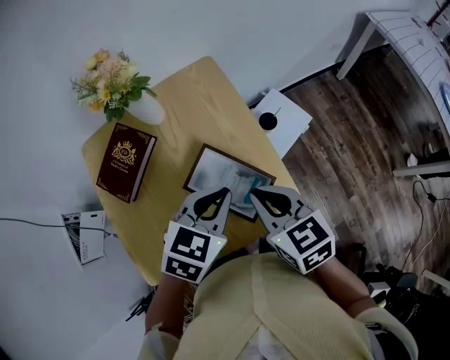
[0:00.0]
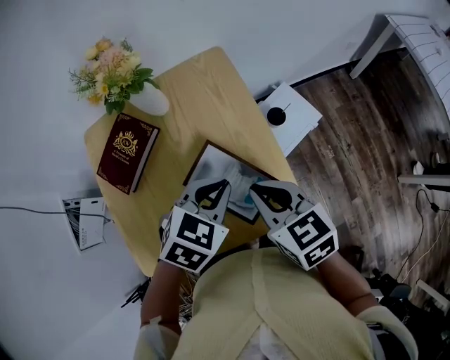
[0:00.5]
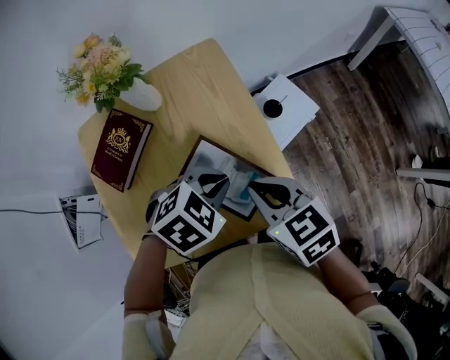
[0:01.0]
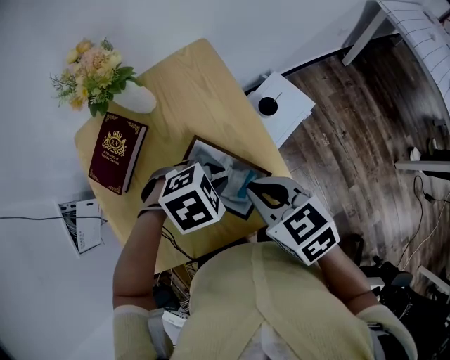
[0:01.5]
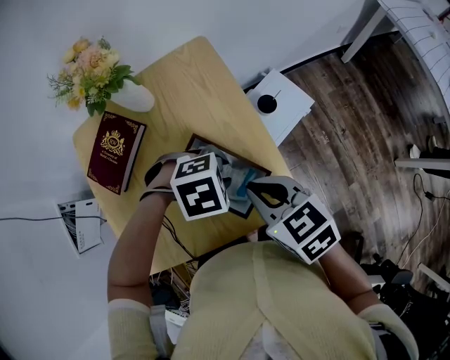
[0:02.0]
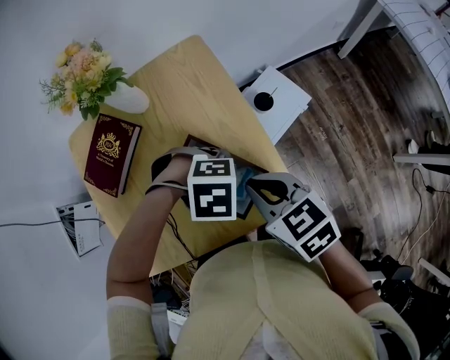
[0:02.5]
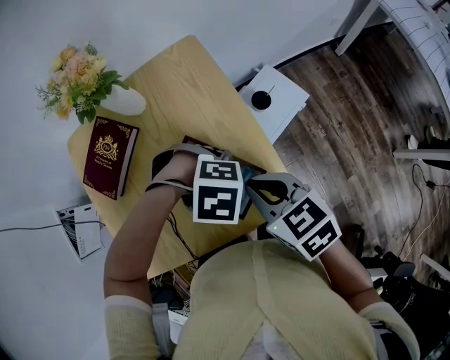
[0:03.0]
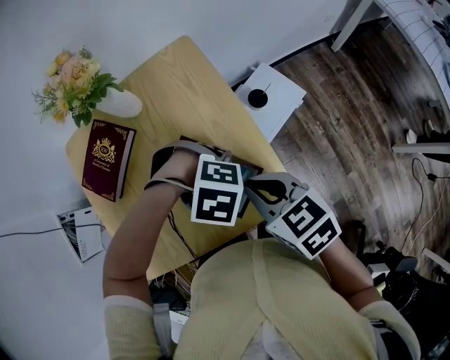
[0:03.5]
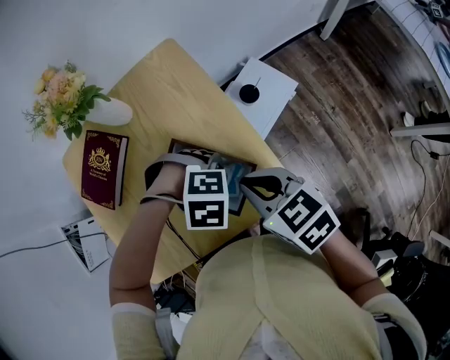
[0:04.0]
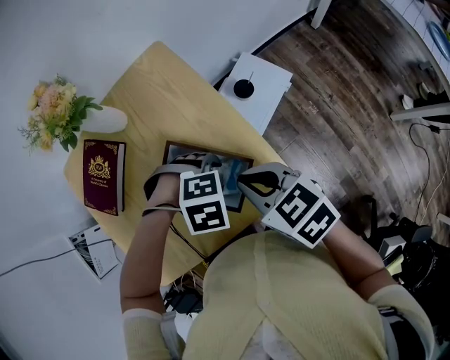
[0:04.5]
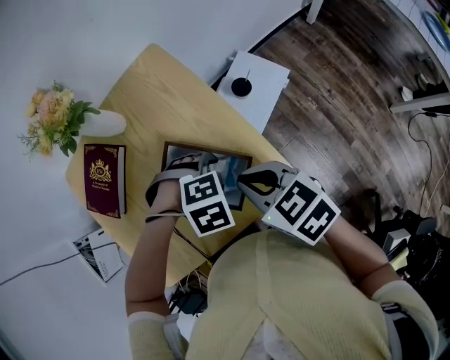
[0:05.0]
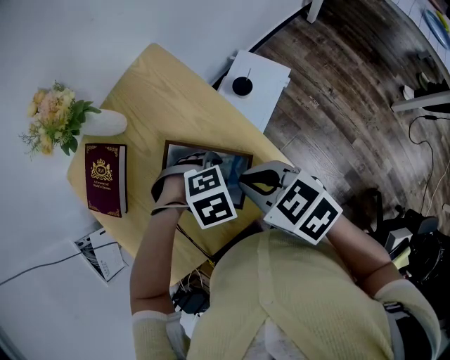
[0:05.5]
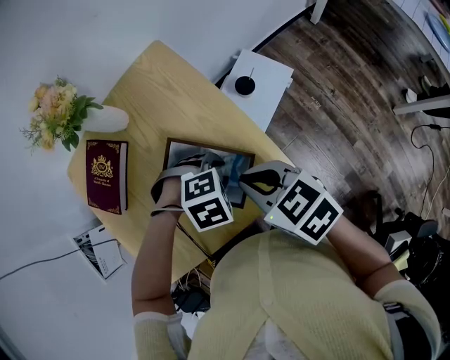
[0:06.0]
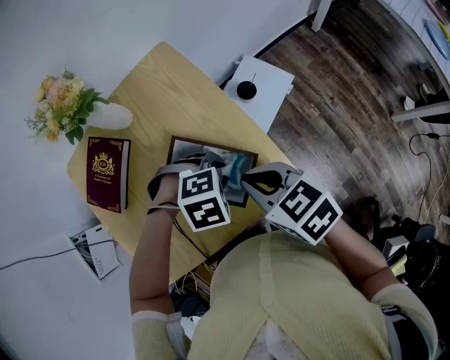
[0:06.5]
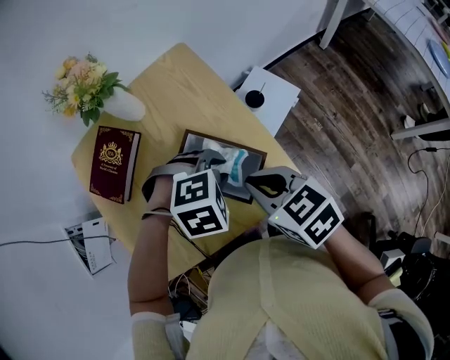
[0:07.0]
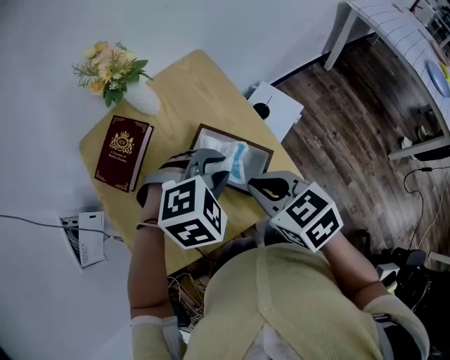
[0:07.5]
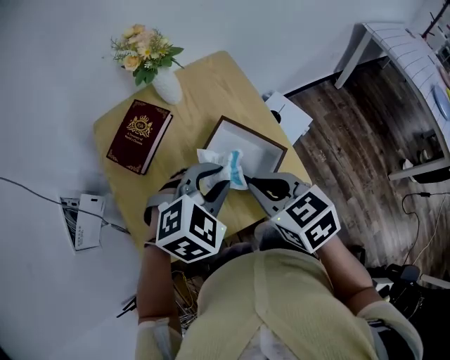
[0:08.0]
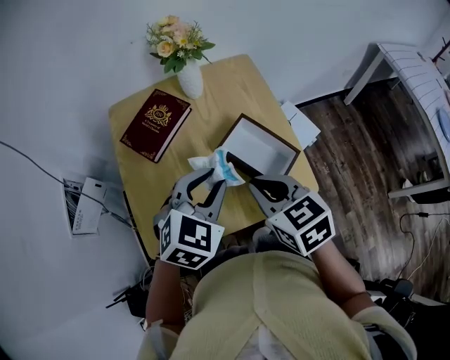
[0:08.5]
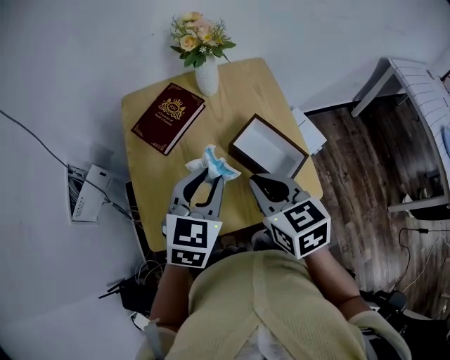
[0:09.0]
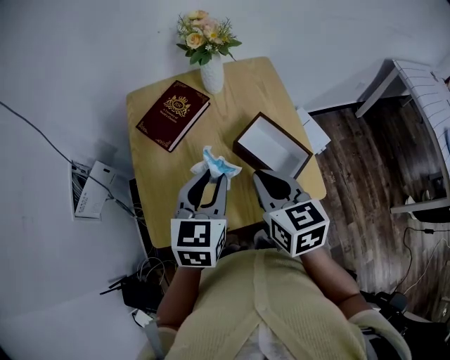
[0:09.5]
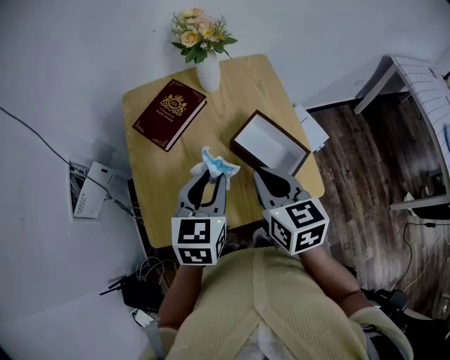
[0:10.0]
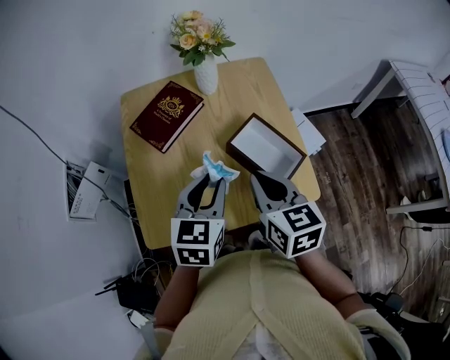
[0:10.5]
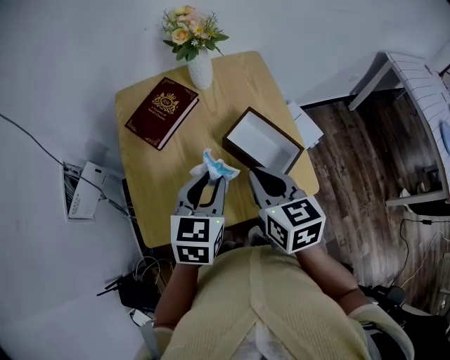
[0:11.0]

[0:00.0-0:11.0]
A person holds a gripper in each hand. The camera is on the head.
0:00.0 to 0:02.0: The left gripper shifts some 10 cm downward, points its fingers roughly 30 degrees further downward, and opens up.
0:02.0 to 0:03.5: The left gripper swivels about 30 degrees.
0:03.5 to 0:05.5: The left gripper opens its fingers.
0:05.5 to 0:07.5: The left gripper travels upward by about 15 cm, changes its angle by approximately 30 degrees, and closes.
0:07.5 to 0:09.0: The right gripper travels to the left by about 10 cm. The left gripper travels to the left by approximately 15 cm, and points its fingers some 30 degrees further upward.
0:09.0 to 0:11.0: The grippers stay close to where they were, moving slightly.

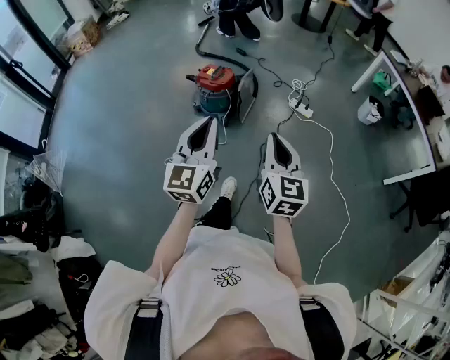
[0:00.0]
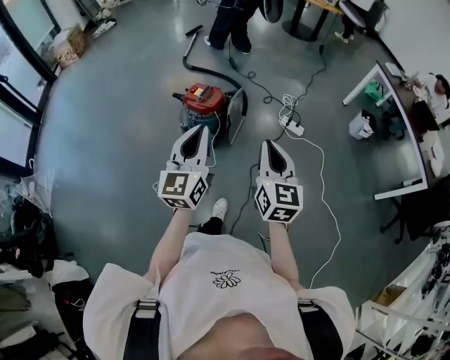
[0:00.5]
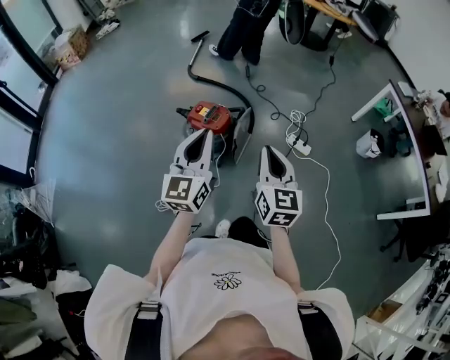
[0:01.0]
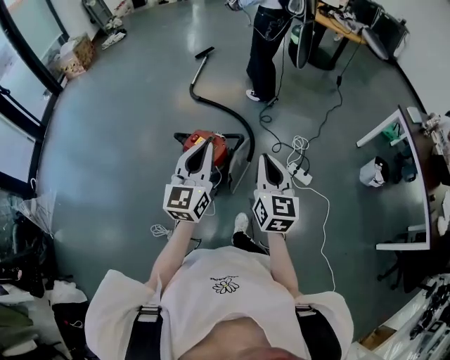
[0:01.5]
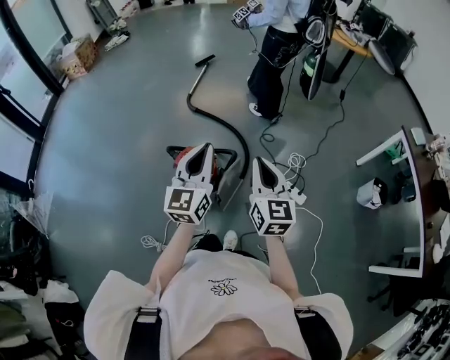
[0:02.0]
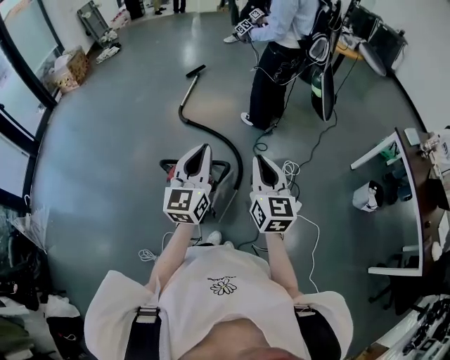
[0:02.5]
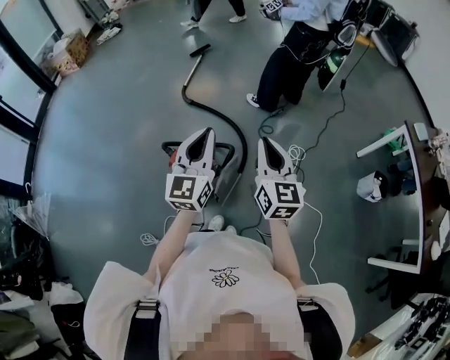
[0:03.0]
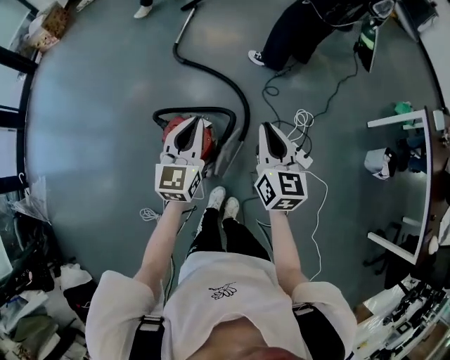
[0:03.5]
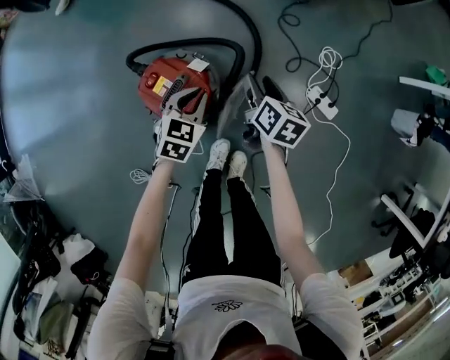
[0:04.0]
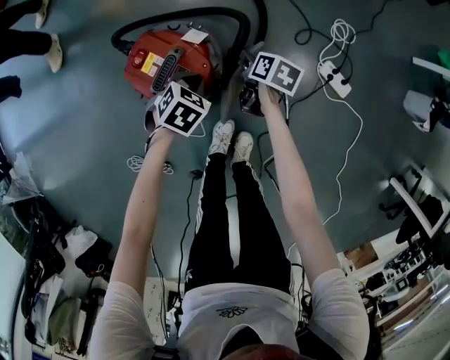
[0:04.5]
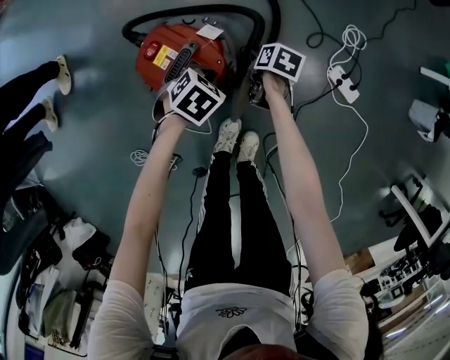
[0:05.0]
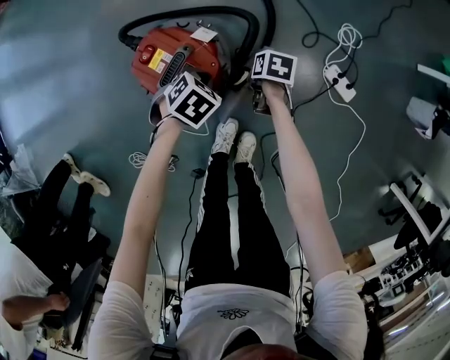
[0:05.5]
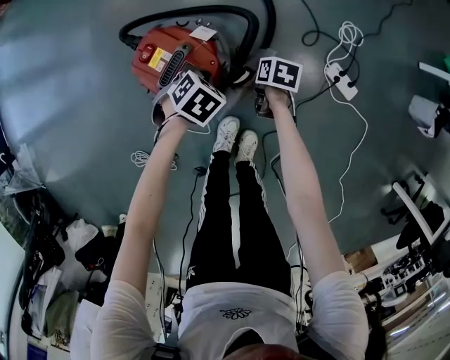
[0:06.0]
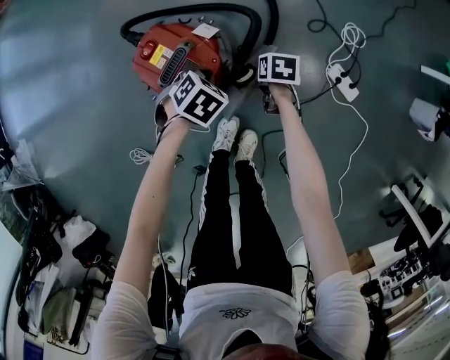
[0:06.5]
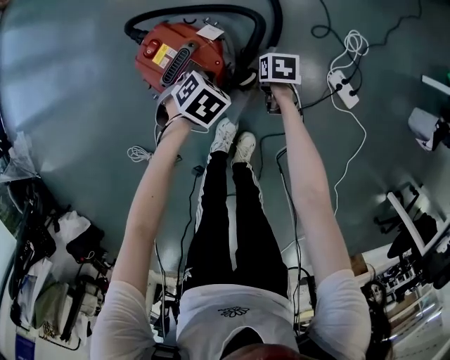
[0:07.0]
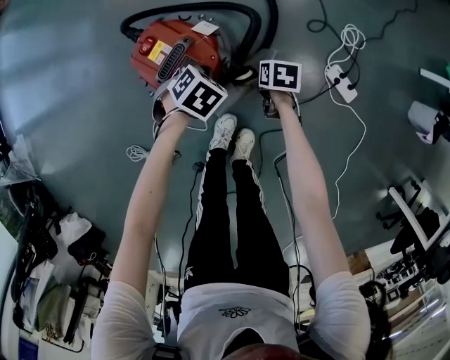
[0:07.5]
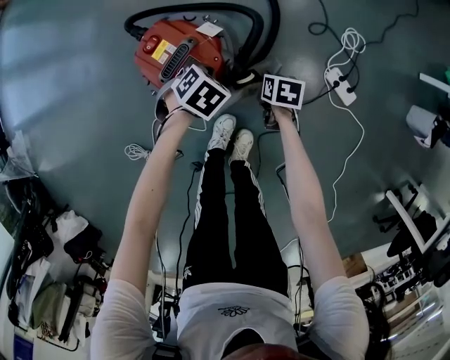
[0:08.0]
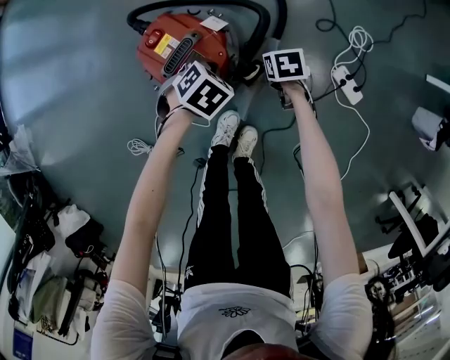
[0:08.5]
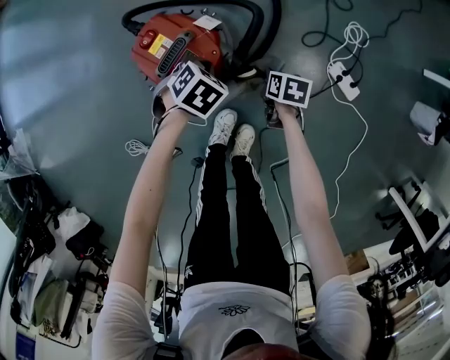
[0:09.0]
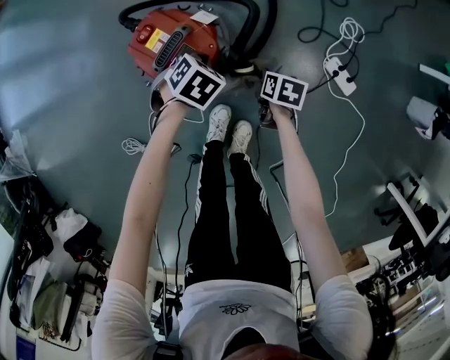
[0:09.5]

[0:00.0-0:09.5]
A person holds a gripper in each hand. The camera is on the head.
0:00.0 to 0:02.0: The pair of grippers is taken forward, some 60 cm.
0:02.0 to 0:04.0: The left gripper travels downward by approximately 50 cm, and points its fingers roughly 50 degrees further downward; the right gripper goes approximately 50 cm downward and forward, tips its fingers downward by about 30 degrees, and opens.
0:04.0 to 0:05.5: The left gripper is displaced downward by some 10 cm, and changes its angle by roughly 30 degrees. Meanwhile the right gripper goes roughly 20 cm downward, tilts its fingers about 30 degrees downward, and closes up.
0:05.5 to 0:07.5: The grippers make only small movements.
0:07.5 to 0:09.5: The right gripper changes place by about 5 cm.

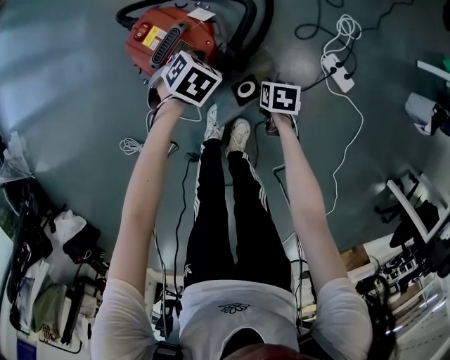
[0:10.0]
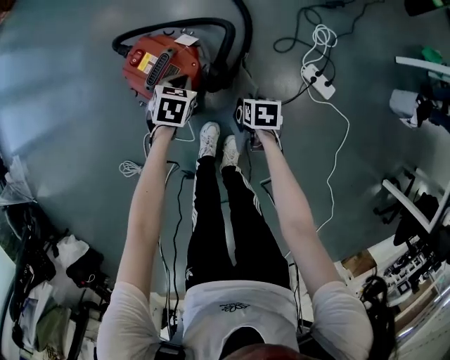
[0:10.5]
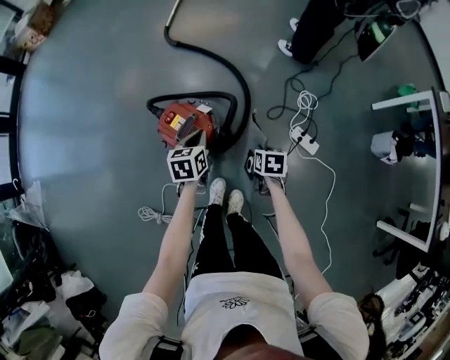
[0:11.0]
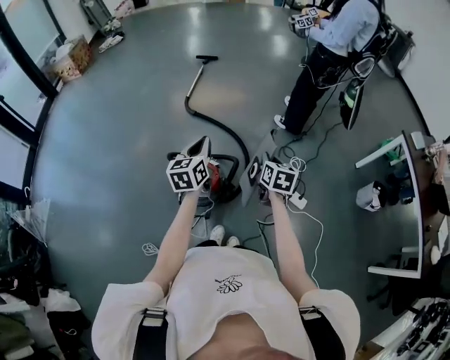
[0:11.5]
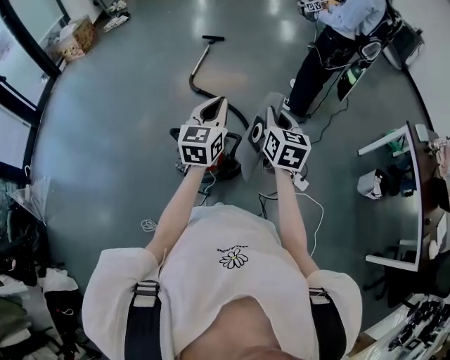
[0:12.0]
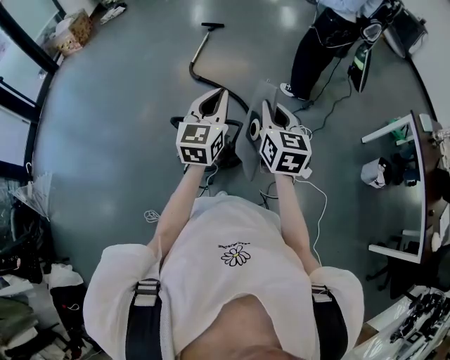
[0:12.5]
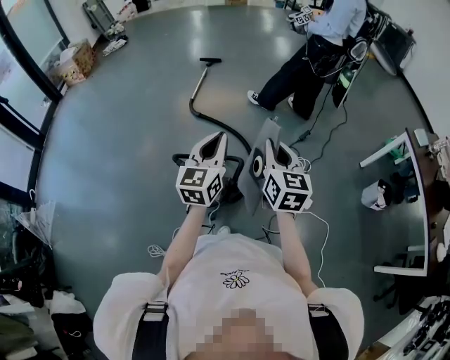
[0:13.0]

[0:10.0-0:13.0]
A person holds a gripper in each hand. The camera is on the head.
0:10.0 to 0:11.5: The two grippers go roughly 50 cm upward. The right gripper tips its fingers upward by about 40 degrees. Meanwhile the left gripper tips its fingers upward by approximately 60 degrees.
0:11.5 to 0:13.0: The right gripper travels upward by roughly 15 cm, and turns by roughly 20 degrees; the left gripper moves upward, roughly 10 cm.

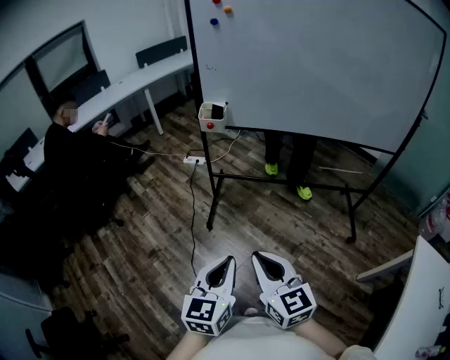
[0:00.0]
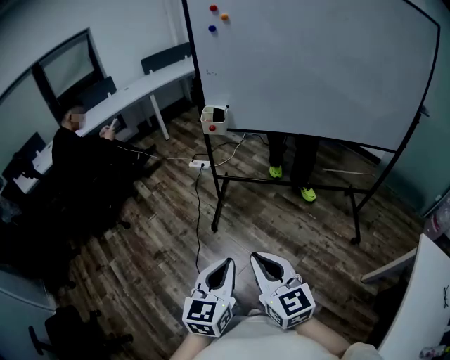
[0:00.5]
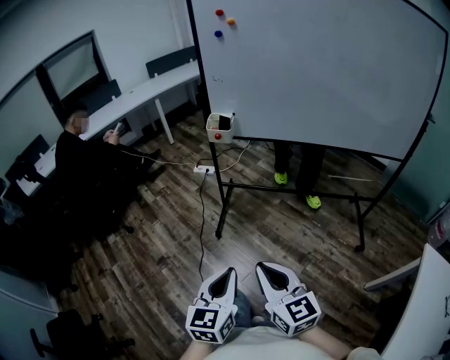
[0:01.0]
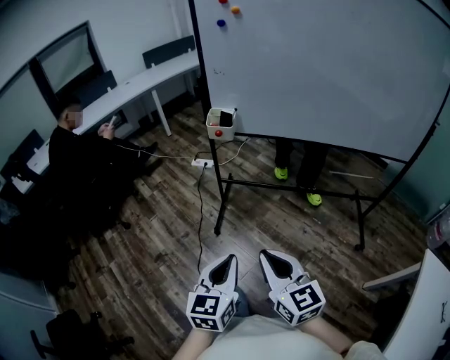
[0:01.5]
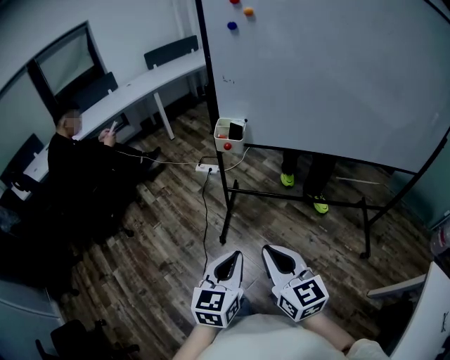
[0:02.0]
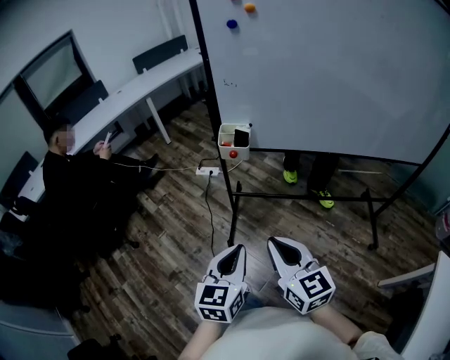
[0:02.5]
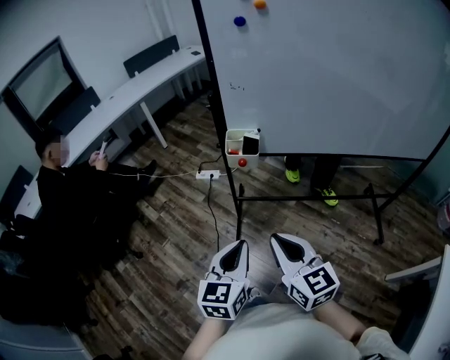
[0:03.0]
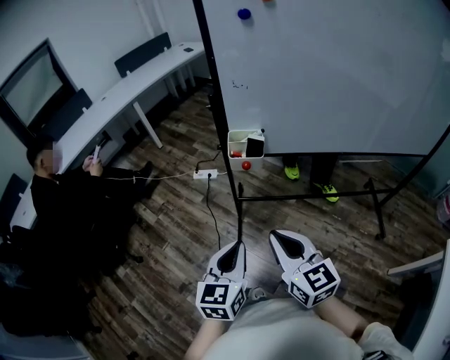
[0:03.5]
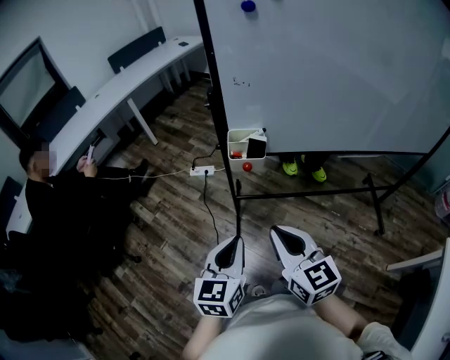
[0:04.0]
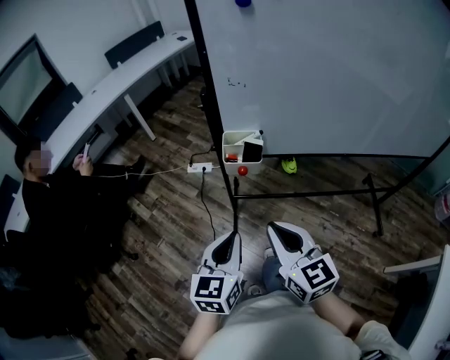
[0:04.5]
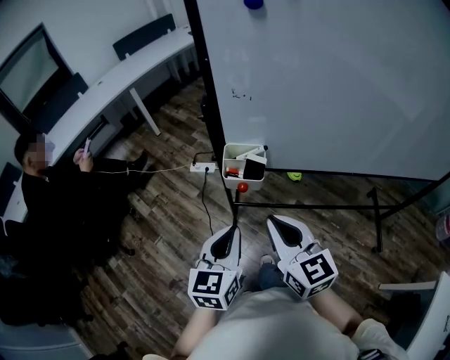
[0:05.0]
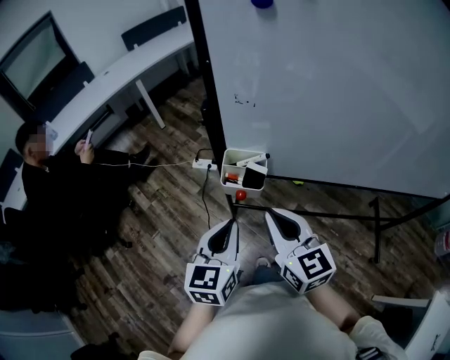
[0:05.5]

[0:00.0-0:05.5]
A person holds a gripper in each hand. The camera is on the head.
0:00.0 to 0:02.0: The grippers both shift forward by some 15 cm.
0:02.0 to 0:03.5: The two grippers go some 20 cm forward and to the left.
0:03.5 to 0:05.5: Both grippers travel together forward, roughly 20 cm.
